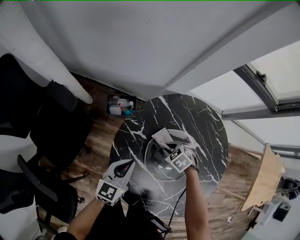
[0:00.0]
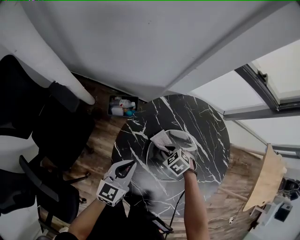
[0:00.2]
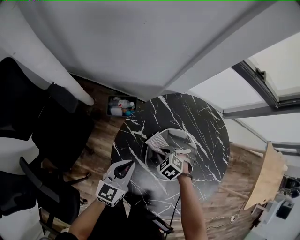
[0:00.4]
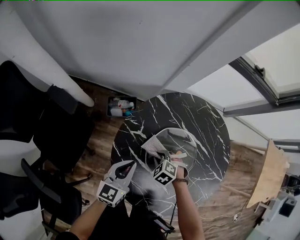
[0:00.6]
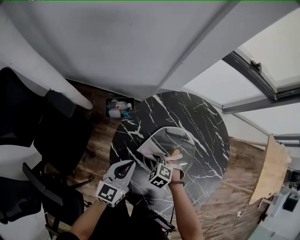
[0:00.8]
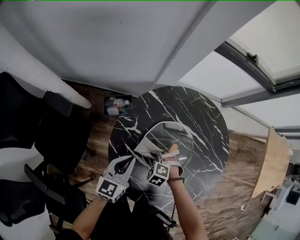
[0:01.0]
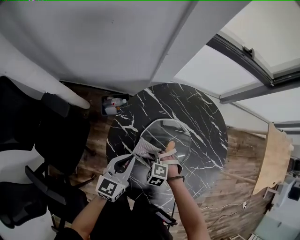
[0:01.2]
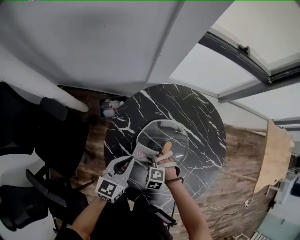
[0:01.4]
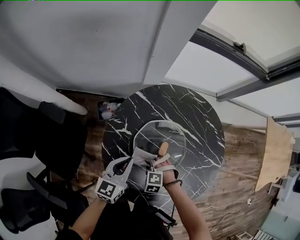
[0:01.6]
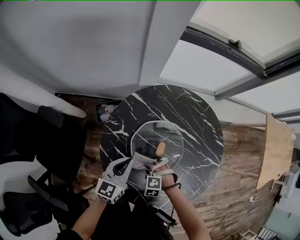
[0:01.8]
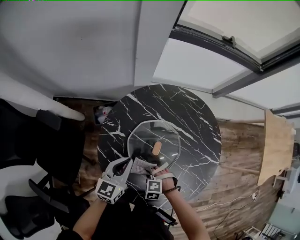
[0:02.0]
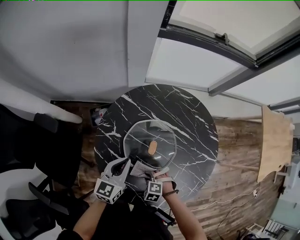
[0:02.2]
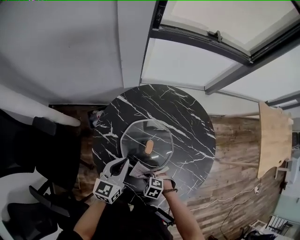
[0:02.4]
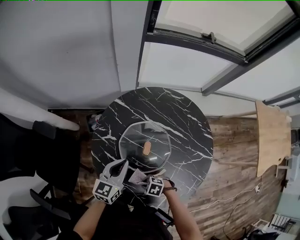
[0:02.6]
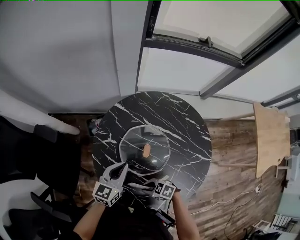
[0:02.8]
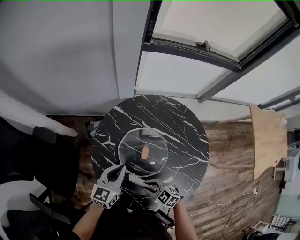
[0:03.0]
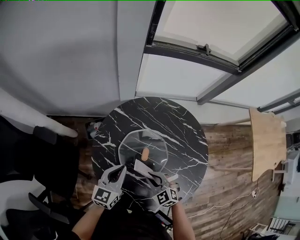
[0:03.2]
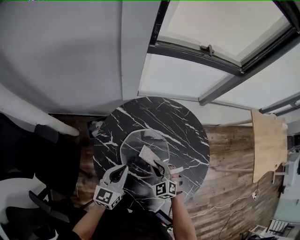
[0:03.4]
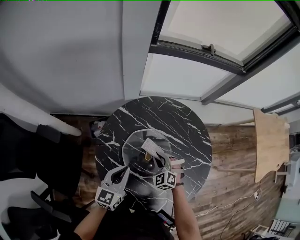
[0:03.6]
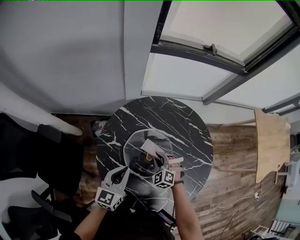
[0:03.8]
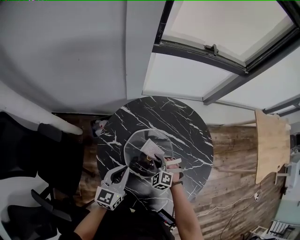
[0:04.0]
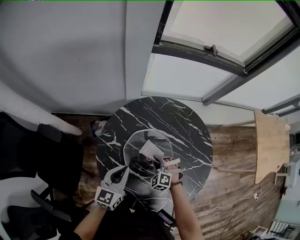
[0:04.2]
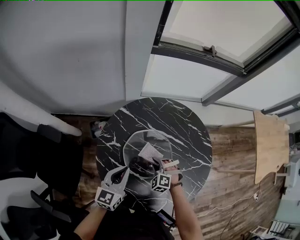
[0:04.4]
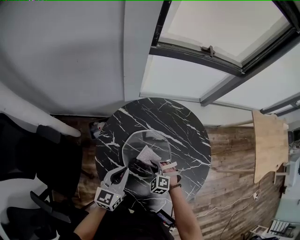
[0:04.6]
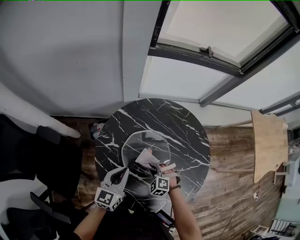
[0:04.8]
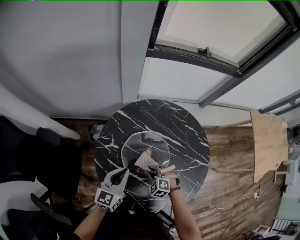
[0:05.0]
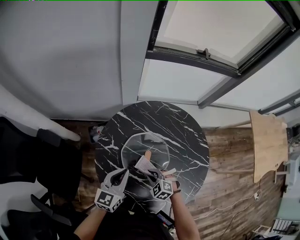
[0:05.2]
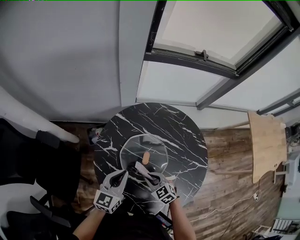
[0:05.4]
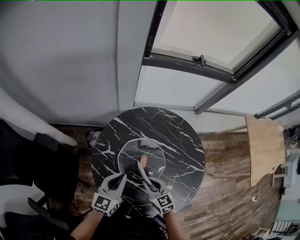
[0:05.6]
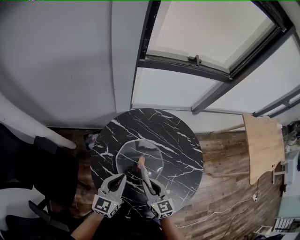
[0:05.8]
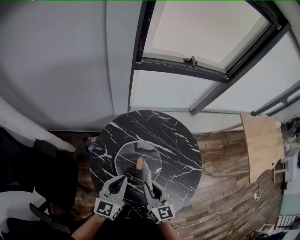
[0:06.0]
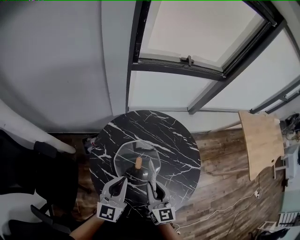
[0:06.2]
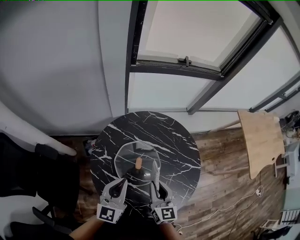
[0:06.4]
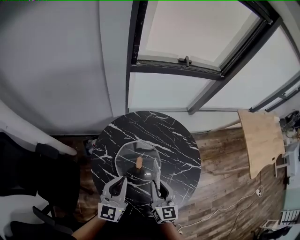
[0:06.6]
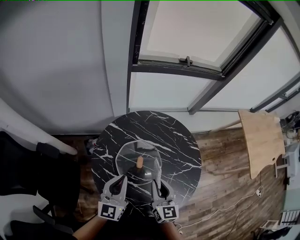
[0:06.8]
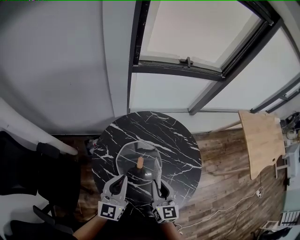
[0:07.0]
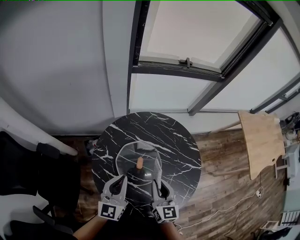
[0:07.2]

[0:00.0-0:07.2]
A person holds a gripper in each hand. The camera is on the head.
0:00.0 to 0:01.4: The right gripper ends up approximately 15 cm from where it was, and swivels about 30 degrees. The left gripper ends up some 5 cm from where it was.
0:01.4 to 0:02.8: The left gripper ends up some 5 cm from where it was. Meanwhile the right gripper shifts by roughly 15 cm, and tilts its fingers approximately 30 degrees upward.
0:02.8 to 0:04.4: The right gripper moves roughly 20 cm, and swivels approximately 60 degrees.
0:04.4 to 0:05.8: The left gripper ends up roughly 5 cm from where it was; the right gripper shifts about 15 cm upward, and rotates around the line of its fingers by roughly 60 degrees, clockwise from behind.
0:05.8 to 0:07.2: Both grippers move upward, roughly 5 cm.

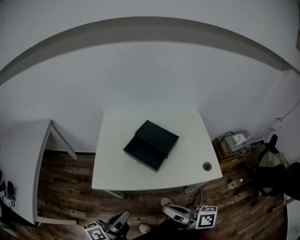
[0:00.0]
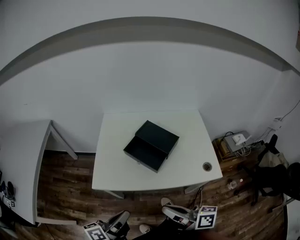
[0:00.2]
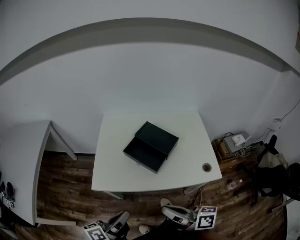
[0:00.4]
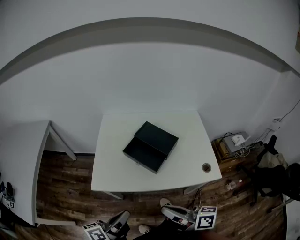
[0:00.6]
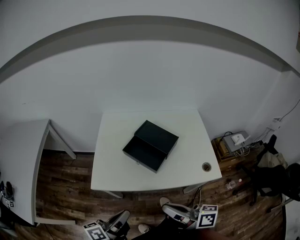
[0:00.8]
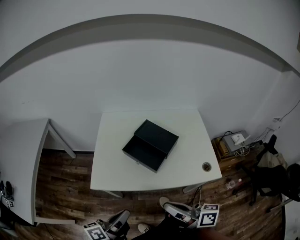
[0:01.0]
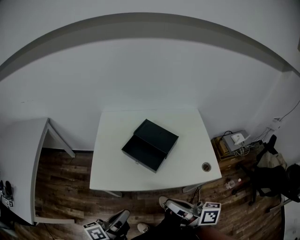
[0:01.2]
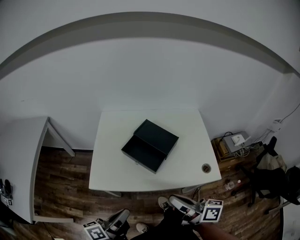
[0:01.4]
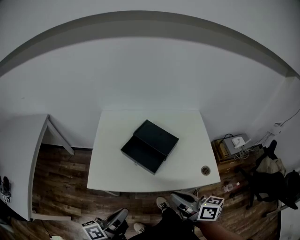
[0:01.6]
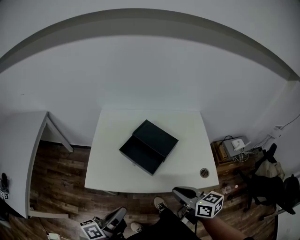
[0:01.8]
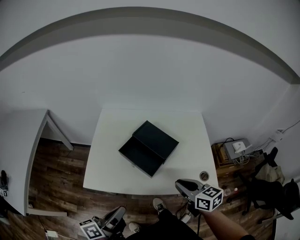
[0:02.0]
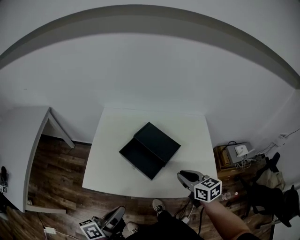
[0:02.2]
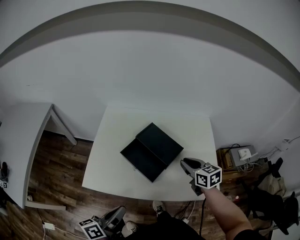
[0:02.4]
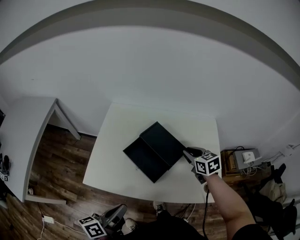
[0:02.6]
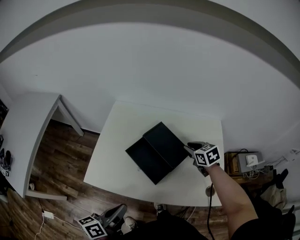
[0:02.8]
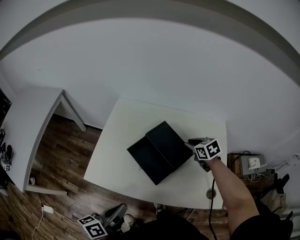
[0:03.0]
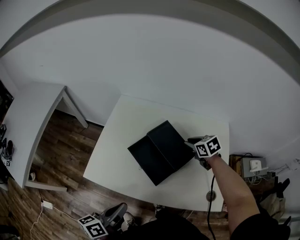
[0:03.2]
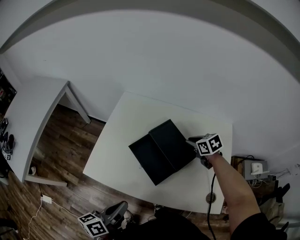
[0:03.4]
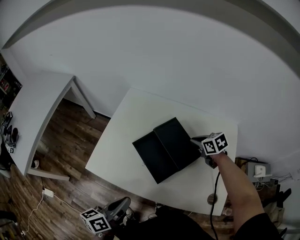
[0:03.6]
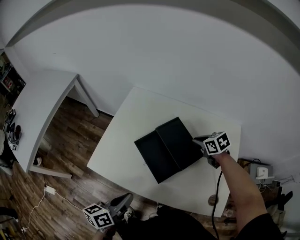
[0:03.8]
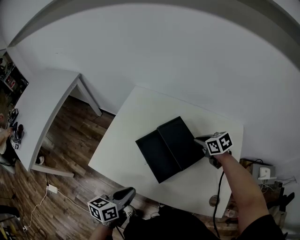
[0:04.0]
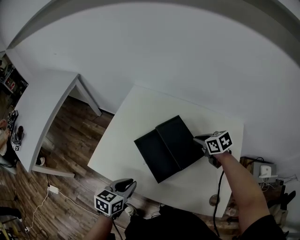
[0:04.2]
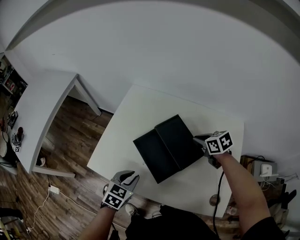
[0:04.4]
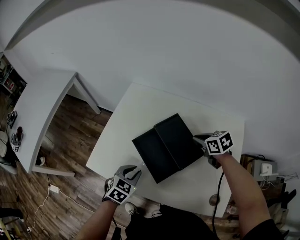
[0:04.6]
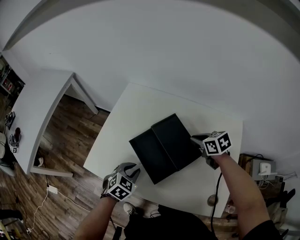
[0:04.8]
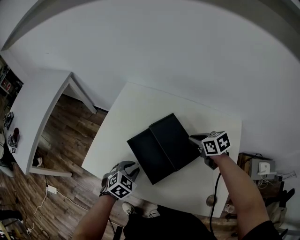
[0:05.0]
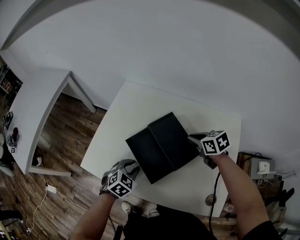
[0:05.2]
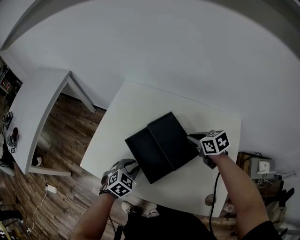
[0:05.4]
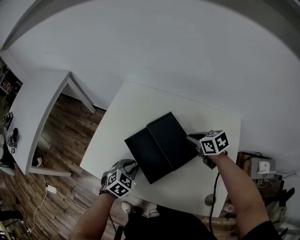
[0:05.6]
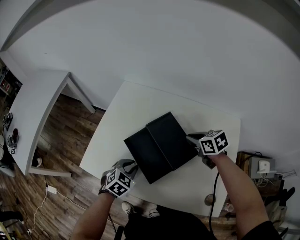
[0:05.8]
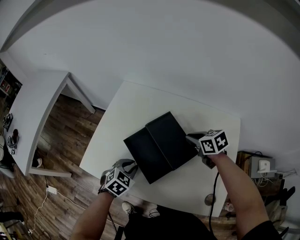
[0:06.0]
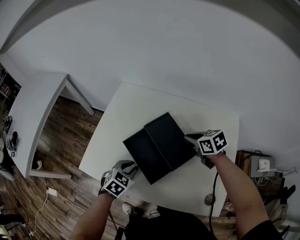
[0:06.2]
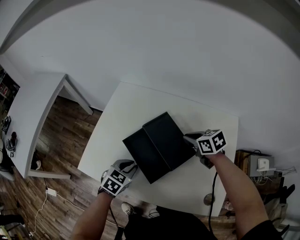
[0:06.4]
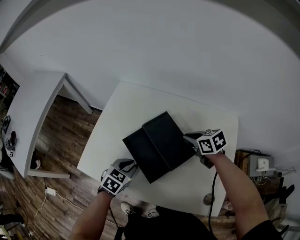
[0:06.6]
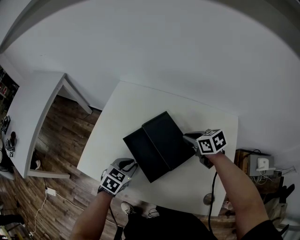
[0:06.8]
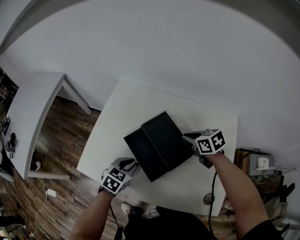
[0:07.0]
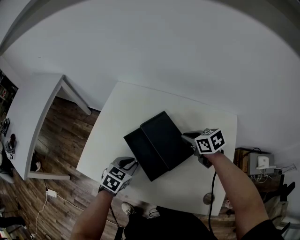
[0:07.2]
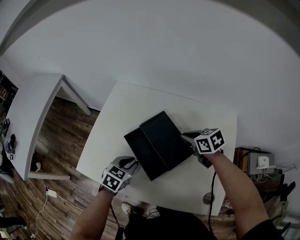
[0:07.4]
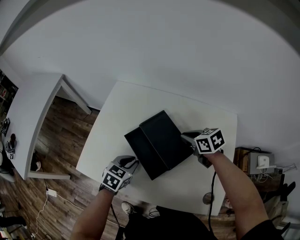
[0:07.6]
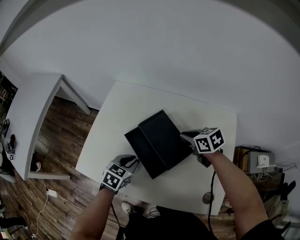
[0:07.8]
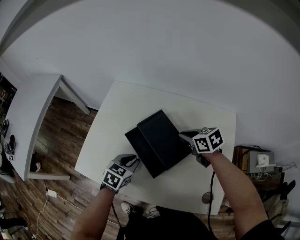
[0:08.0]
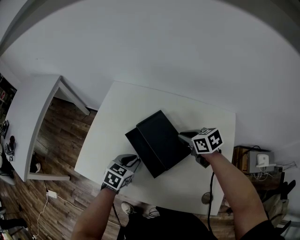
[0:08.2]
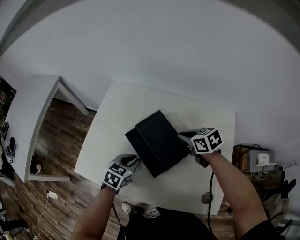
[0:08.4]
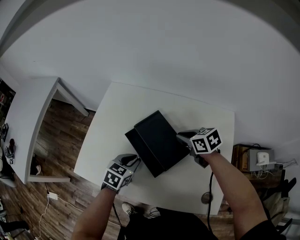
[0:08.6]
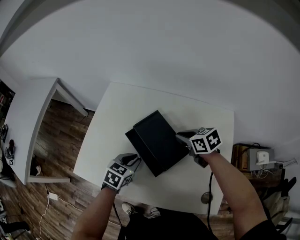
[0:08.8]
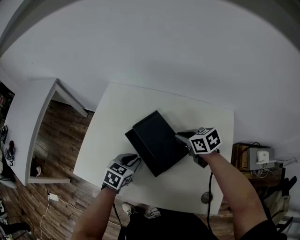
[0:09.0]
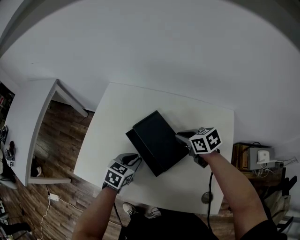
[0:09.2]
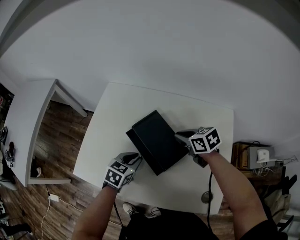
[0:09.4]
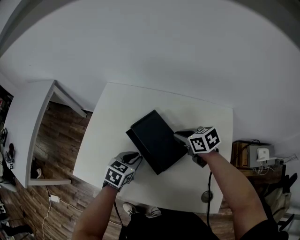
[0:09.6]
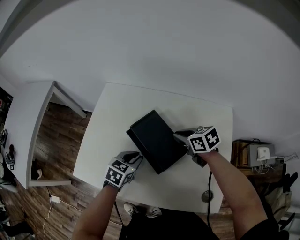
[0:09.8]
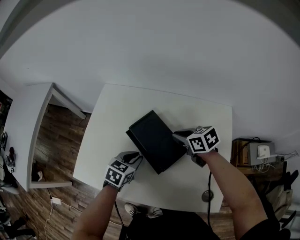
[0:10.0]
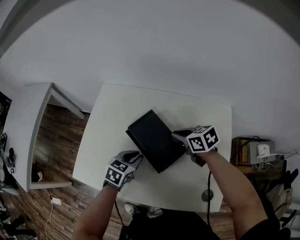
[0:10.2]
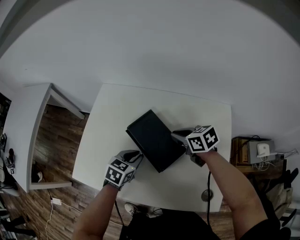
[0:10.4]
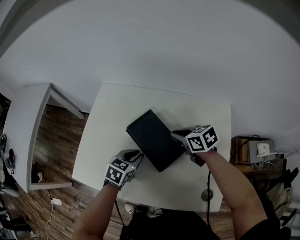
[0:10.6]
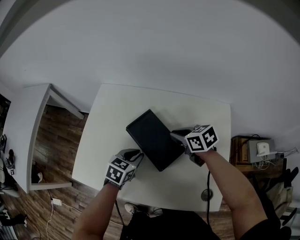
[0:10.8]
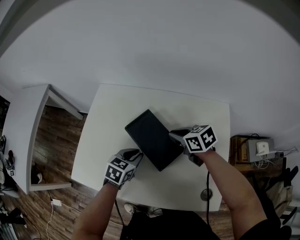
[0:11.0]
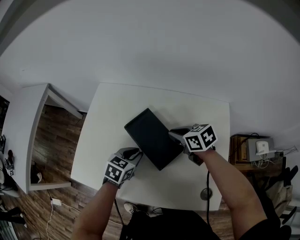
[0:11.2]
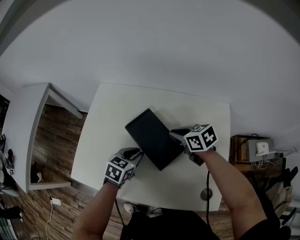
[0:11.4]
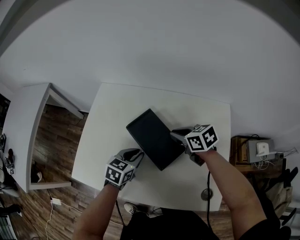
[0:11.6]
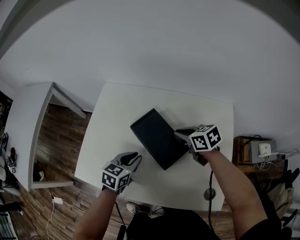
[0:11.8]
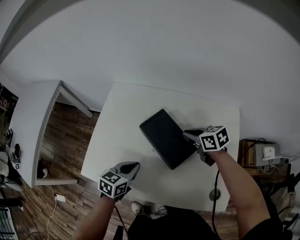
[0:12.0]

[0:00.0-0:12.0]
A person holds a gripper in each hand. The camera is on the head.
0:00.0 to 0:01.6: The right gripper goes approximately 10 cm forward and to the right.
0:01.6 to 0:03.0: The right gripper travels forward by some 35 cm, and points its fingers roughly 40 degrees further downward. The left gripper is displaced forward by roughly 5 cm.
0:03.0 to 0:04.4: The left gripper travels downward and forward by approximately 15 cm, and rolls clockwise, seen from behind, by approximately 50 degrees.
0:04.4 to 0:06.0: The left gripper moves approximately 5 cm.
0:06.0 to 0:07.6: The grippers stay close to where they were, moving slightly.
0:07.6 to 0:09.0: There are only small adjustments of the grippers.
0:09.0 to 0:10.4: The grippers stay close to where they were, moving slightly.
0:10.4 to 0:12.0: The left gripper moves to the left, roughly 5 cm.

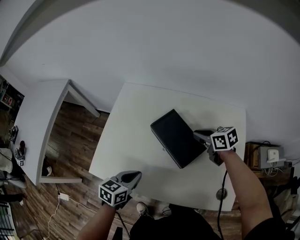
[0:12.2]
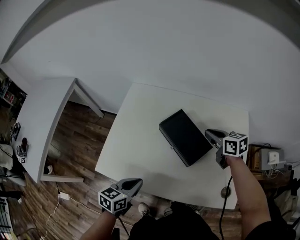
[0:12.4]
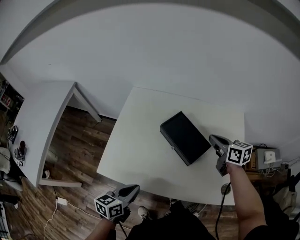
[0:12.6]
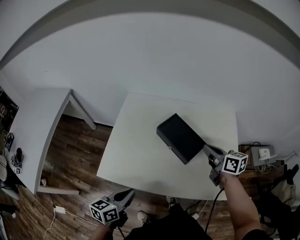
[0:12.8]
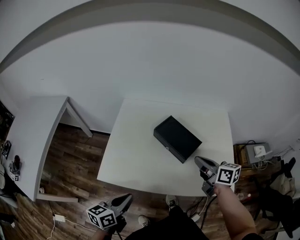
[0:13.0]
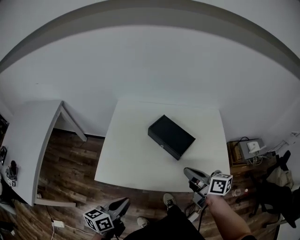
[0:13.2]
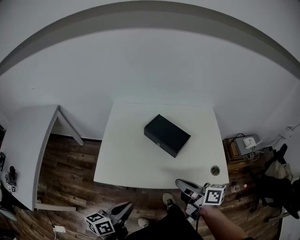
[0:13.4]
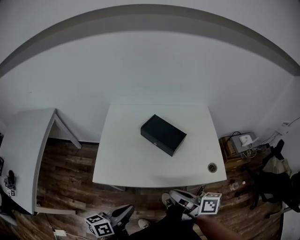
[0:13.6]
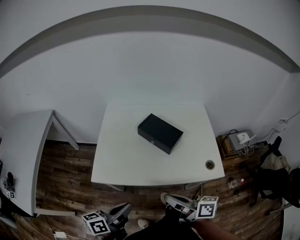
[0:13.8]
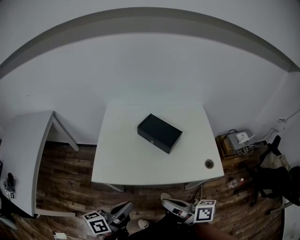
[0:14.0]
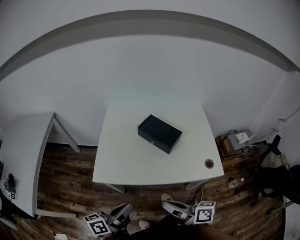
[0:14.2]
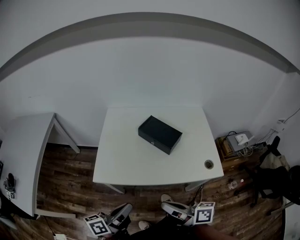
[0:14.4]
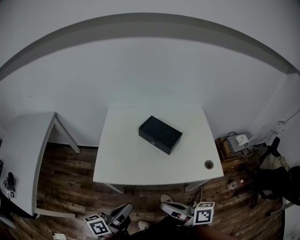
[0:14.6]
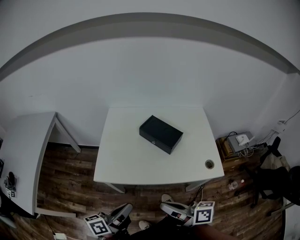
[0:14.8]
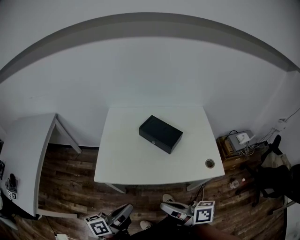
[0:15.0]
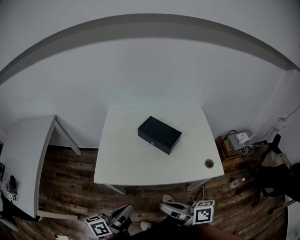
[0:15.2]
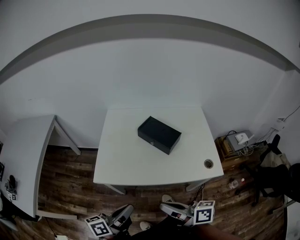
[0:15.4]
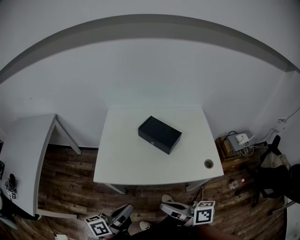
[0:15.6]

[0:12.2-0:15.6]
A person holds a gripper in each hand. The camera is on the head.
0:12.2 to 0:13.8: The right gripper heads backward, covering about 40 cm, and angles its fingers upward, by approximately 30 degrees. Meanwhile the left gripper shifts roughly 20 cm backward and upward, and changes its angle by roughly 40 degrees.
0:13.8 to 0:15.6: The right gripper ends up some 5 cm from where it was.

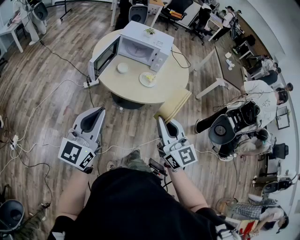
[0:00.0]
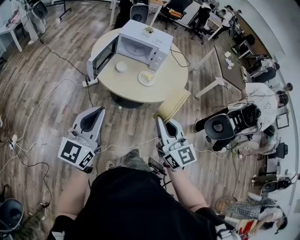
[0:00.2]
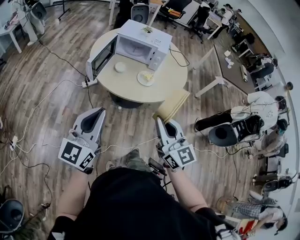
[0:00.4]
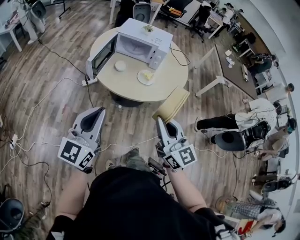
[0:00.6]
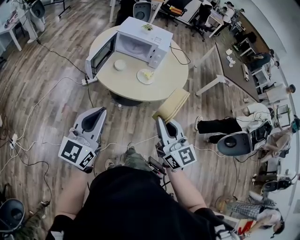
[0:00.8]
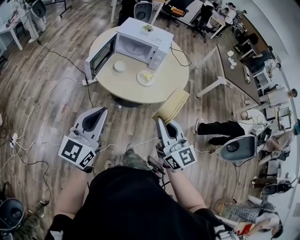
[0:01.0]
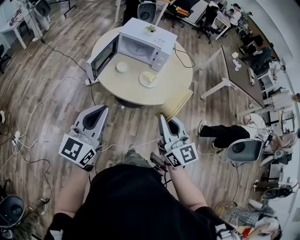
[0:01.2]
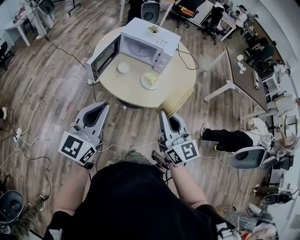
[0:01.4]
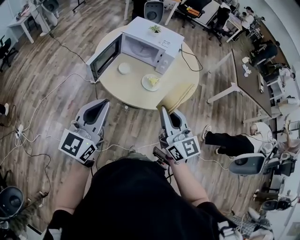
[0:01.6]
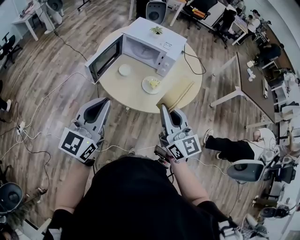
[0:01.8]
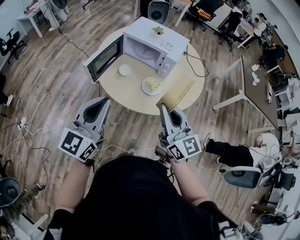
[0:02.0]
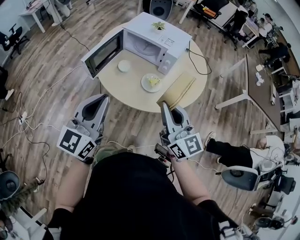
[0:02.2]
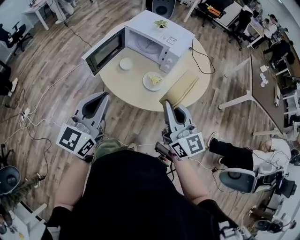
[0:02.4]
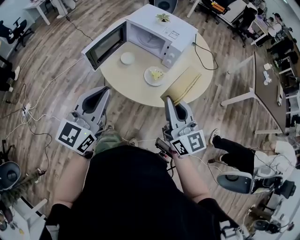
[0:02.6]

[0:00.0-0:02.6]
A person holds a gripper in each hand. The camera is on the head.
0:00.0 to 0:01.2: The left gripper moves approximately 5 cm; the right gripper travels forward by roughly 5 cm.
0:01.2 to 0:02.6: The left gripper travels to the right and forward by about 15 cm, while the right gripper moves forward and to the right, about 20 cm.
